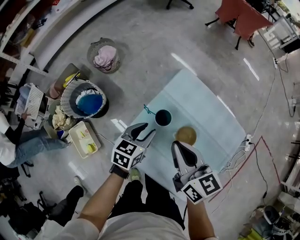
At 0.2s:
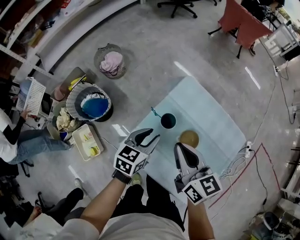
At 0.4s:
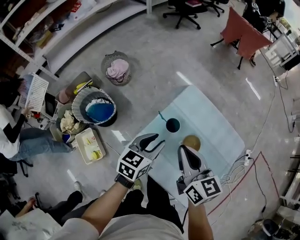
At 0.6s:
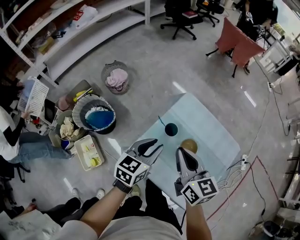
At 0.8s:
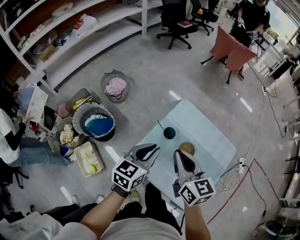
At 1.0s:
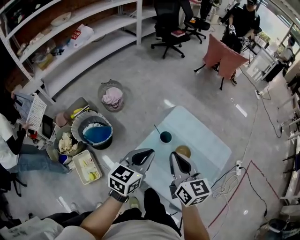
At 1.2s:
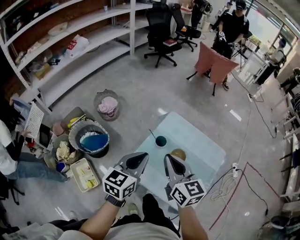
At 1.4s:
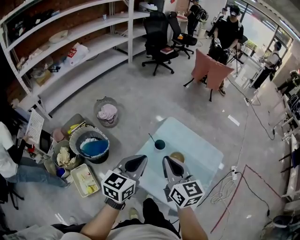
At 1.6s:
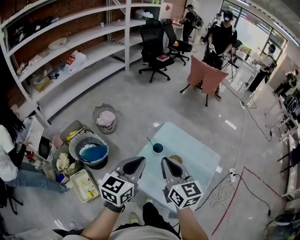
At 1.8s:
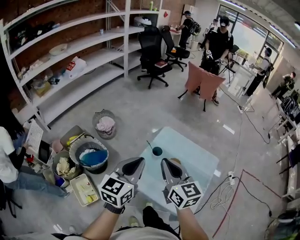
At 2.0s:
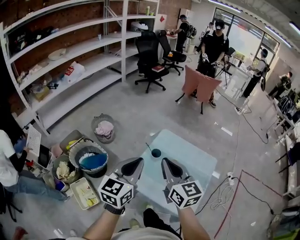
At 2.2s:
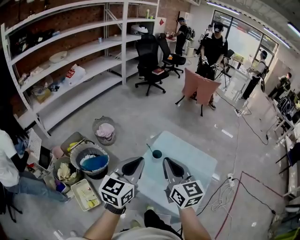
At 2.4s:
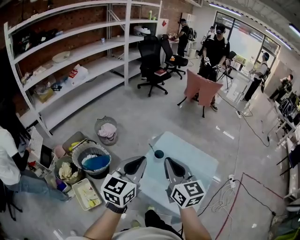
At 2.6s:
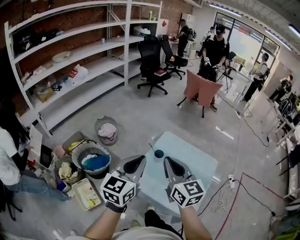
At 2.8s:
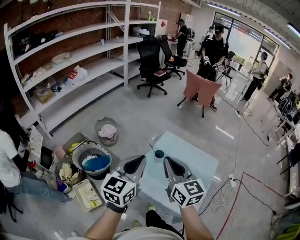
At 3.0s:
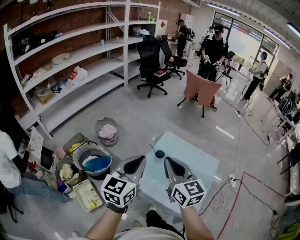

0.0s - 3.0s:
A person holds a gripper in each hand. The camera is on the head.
0.0s - 1.6s: The right gripper moves upward and backward, about 20 cm, and swivels about 20 degrees. Meanwhile the left gripper is displaced upward and backward by about 35 cm, swivels approximately 30 degrees, and closes its fingers.
1.6s - 3.0s: Both grippers travel together upward, roughly 5 cm.

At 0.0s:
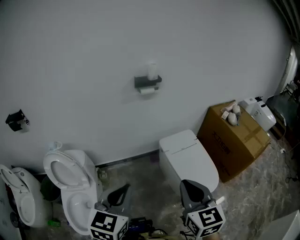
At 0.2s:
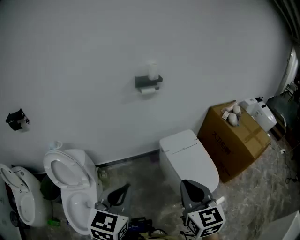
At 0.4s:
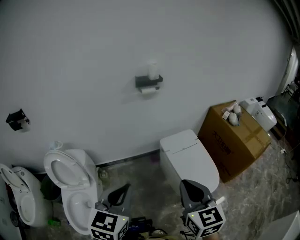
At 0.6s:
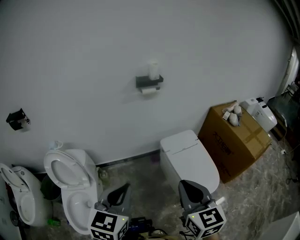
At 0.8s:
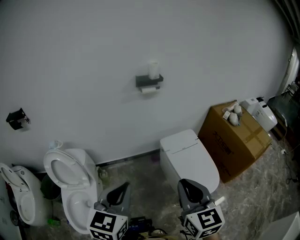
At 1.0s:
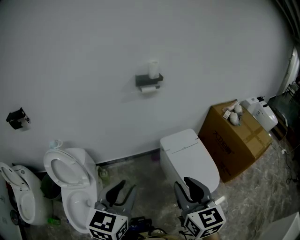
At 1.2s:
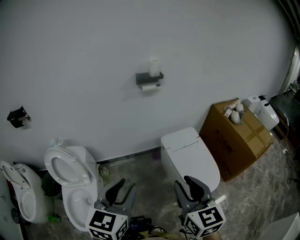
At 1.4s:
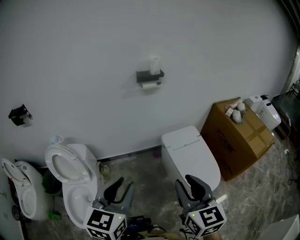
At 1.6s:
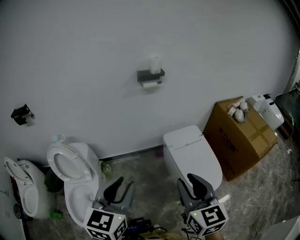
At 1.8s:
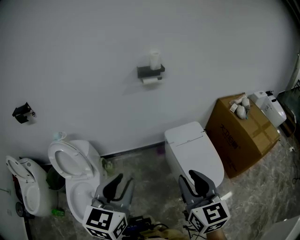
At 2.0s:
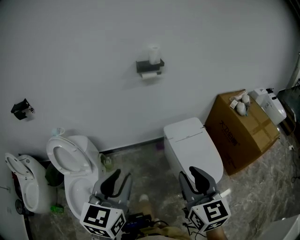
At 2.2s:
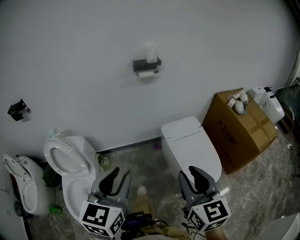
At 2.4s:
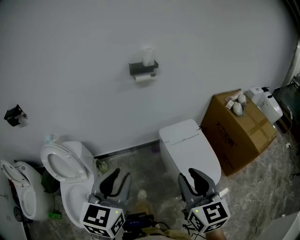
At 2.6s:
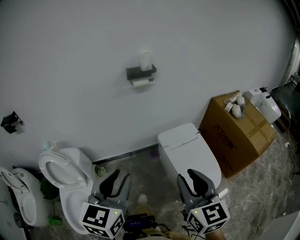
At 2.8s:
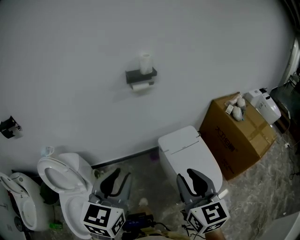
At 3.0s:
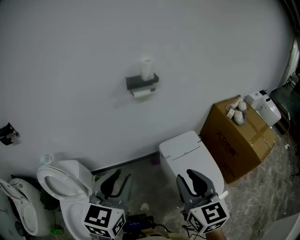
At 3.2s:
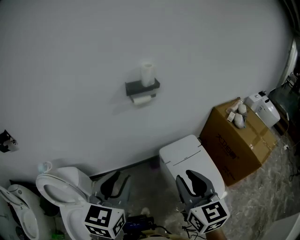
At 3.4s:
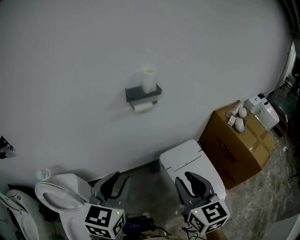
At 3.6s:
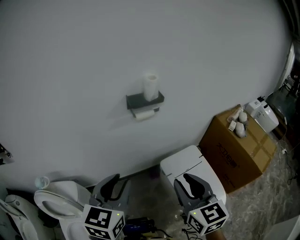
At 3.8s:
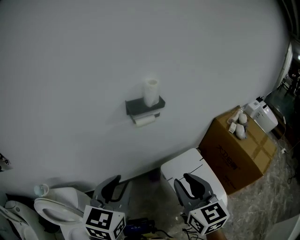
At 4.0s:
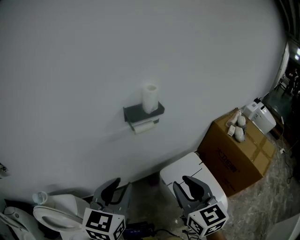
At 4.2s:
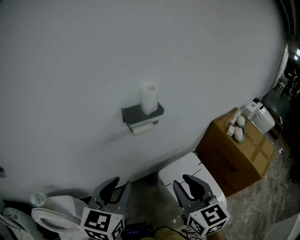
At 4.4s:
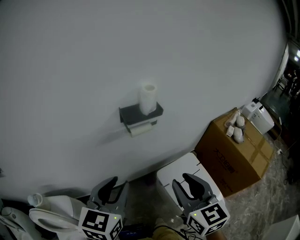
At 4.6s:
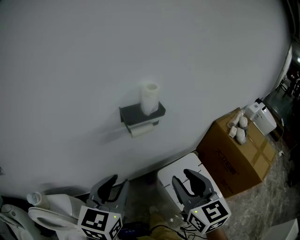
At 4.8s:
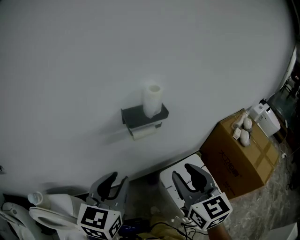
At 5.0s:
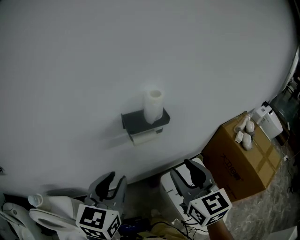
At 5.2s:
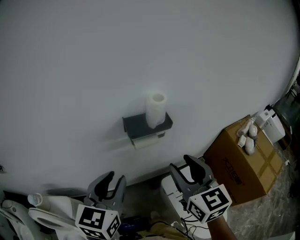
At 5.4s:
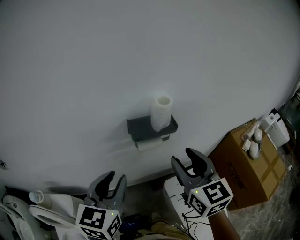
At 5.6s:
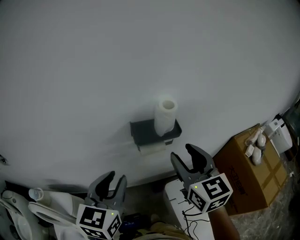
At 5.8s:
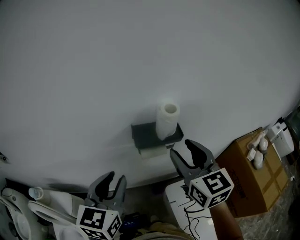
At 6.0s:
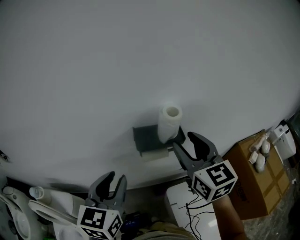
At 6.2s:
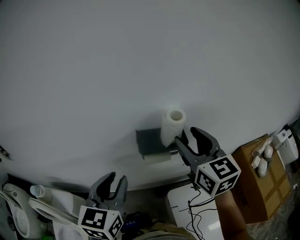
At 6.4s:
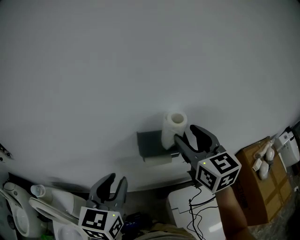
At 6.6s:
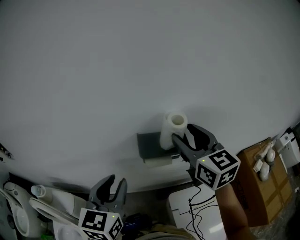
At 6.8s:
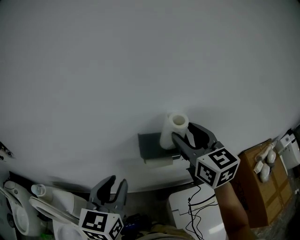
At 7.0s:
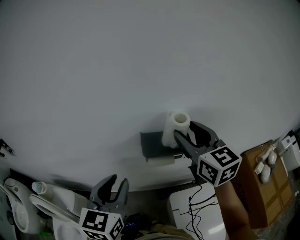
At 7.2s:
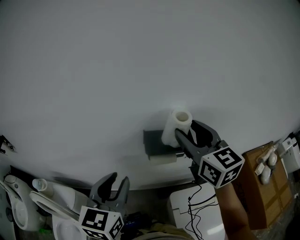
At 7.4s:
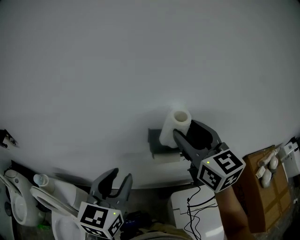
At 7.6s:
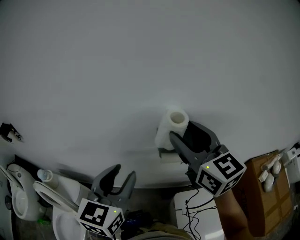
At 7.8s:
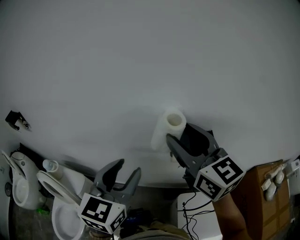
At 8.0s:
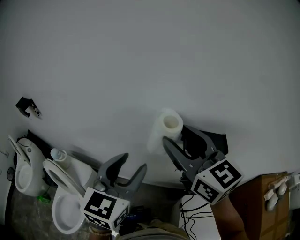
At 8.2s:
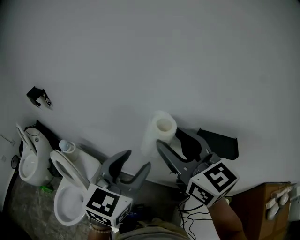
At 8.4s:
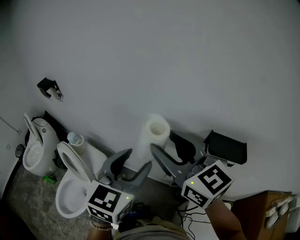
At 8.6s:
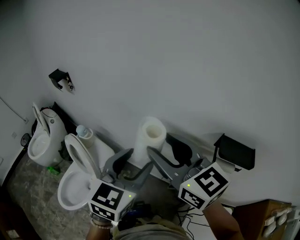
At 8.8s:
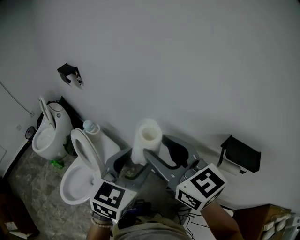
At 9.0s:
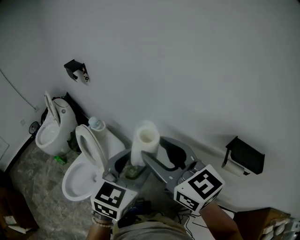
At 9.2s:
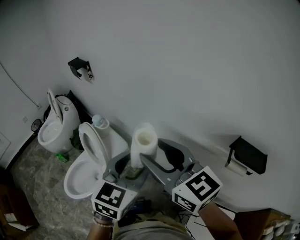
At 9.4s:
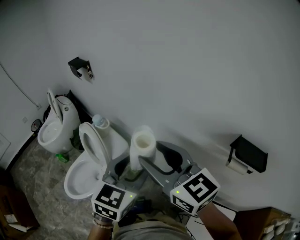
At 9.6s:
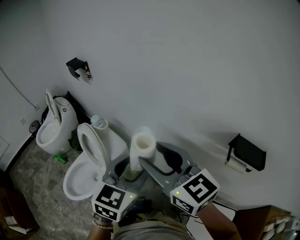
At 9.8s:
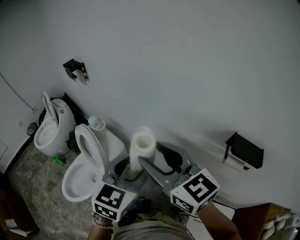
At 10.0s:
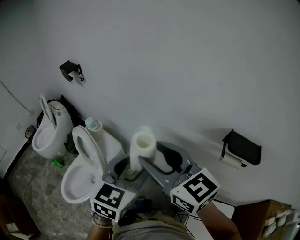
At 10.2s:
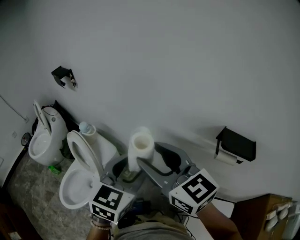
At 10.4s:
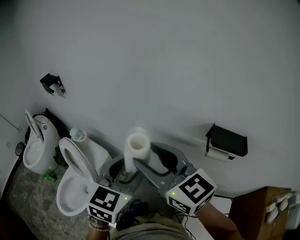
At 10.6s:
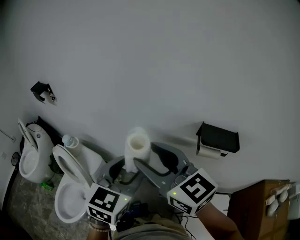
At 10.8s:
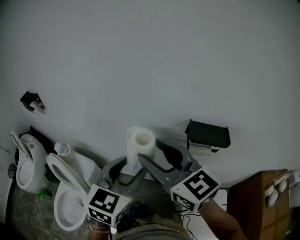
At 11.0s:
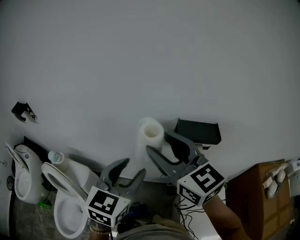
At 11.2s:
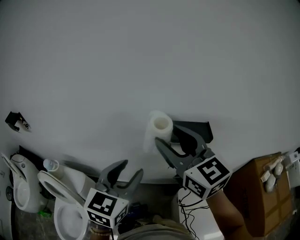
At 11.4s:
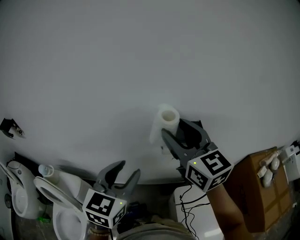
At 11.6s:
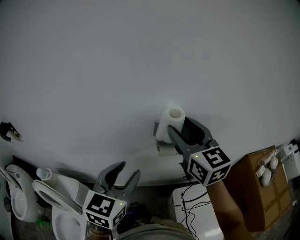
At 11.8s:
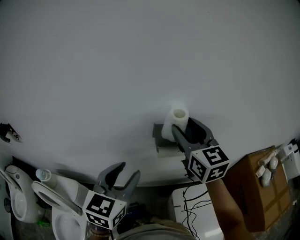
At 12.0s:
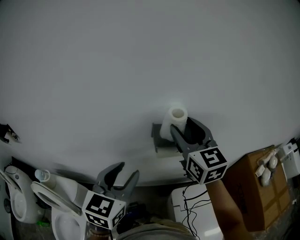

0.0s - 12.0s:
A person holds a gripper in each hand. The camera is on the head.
0.0s - 1.6s: The right gripper opens its fingers, while the left gripper opens its fingers.
1.6s - 3.0s: The grippers both shift forward by roughly 15 cm.
3.0s - 4.4s: Both grippers move forward, roughly 20 cm.
4.4s - 6.0s: The left gripper shifts some 15 cm forward. Meanwhile the right gripper goes approximately 25 cm forward.
6.0s - 7.6s: The right gripper travels to the left and upward by roughly 10 cm.
7.6s - 9.0s: The right gripper changes place by some 35 cm, and swivels some 50 degrees, while the left gripper moves about 20 cm, and changes its angle by some 30 degrees.
9.0s - 10.4s: The grippers make only small movements.
10.4s - 12.0s: The right gripper changes place by roughly 35 cm, and changes its angle by about 50 degrees. Meanwhile the left gripper moves about 15 cm, and rotates approximately 20 degrees.

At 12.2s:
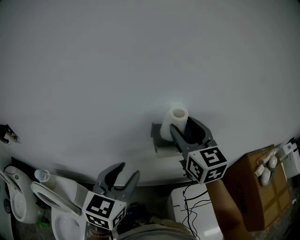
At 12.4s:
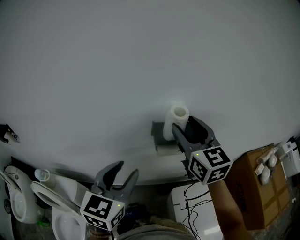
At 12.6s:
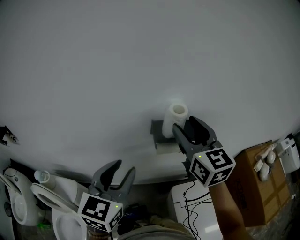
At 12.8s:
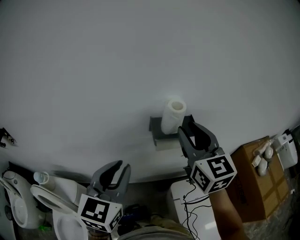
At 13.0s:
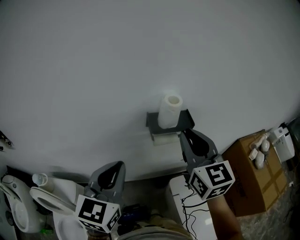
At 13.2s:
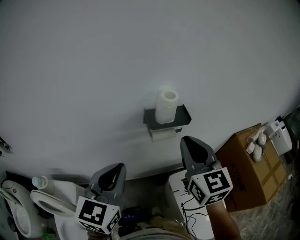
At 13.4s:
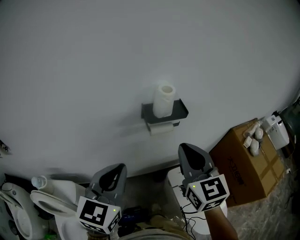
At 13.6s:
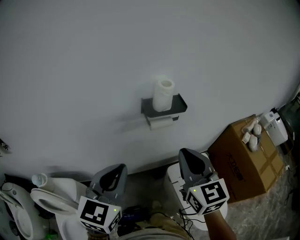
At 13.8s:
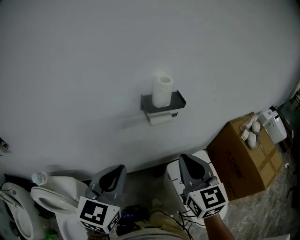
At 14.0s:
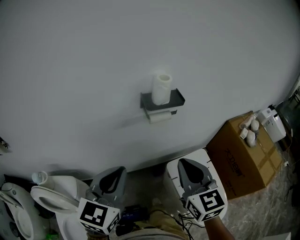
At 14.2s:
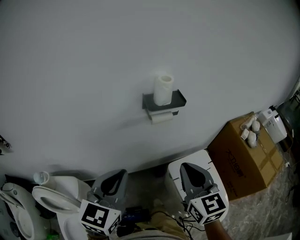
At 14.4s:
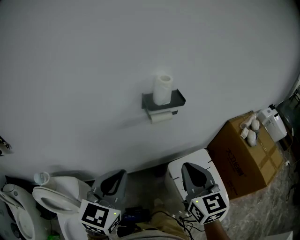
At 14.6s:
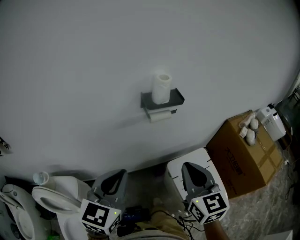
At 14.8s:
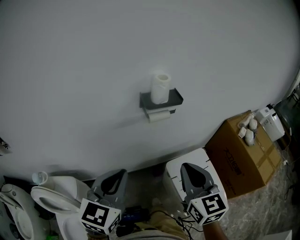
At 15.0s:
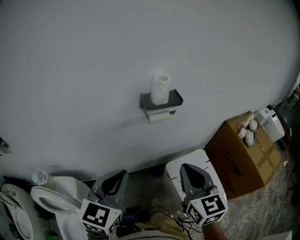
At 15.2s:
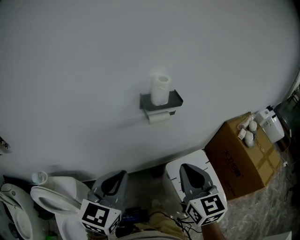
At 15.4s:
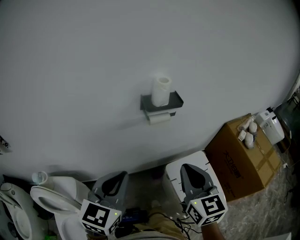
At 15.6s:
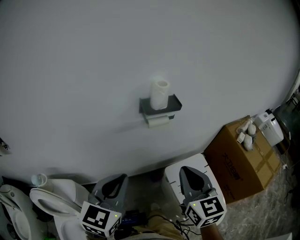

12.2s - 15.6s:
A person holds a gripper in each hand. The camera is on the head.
12.2s - 13.8s: The left gripper travels backward by some 10 cm, and closes; the right gripper shifts about 25 cm backward, and closes.
13.8s - 15.6s: The right gripper ends up some 5 cm from where it was.

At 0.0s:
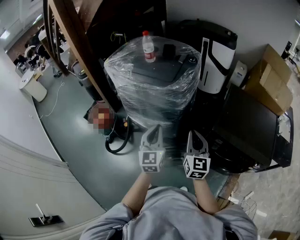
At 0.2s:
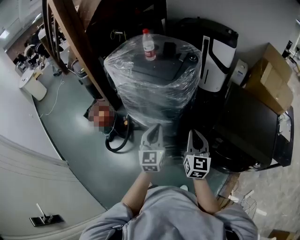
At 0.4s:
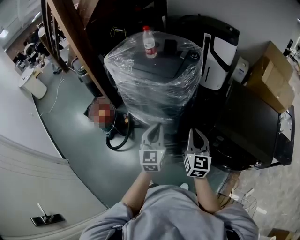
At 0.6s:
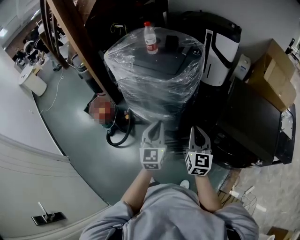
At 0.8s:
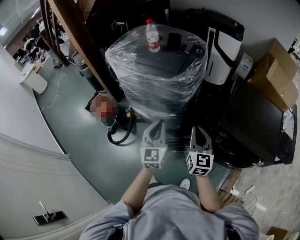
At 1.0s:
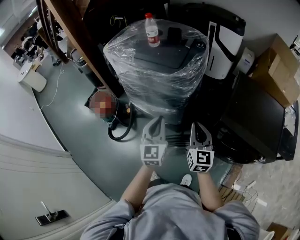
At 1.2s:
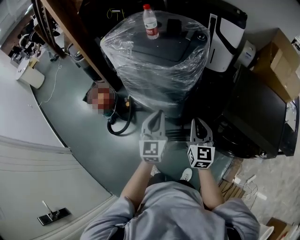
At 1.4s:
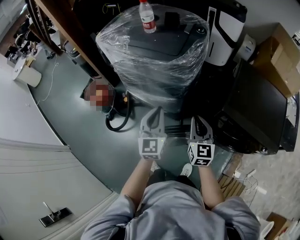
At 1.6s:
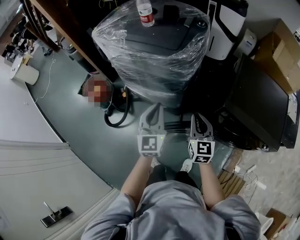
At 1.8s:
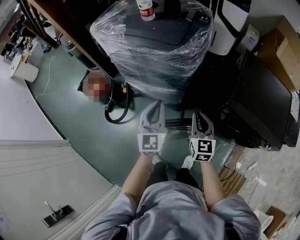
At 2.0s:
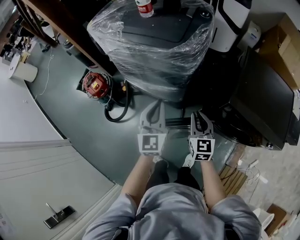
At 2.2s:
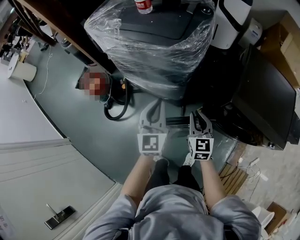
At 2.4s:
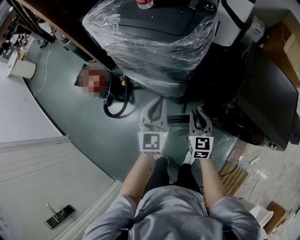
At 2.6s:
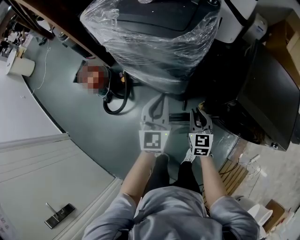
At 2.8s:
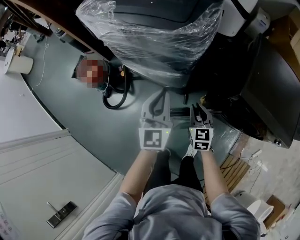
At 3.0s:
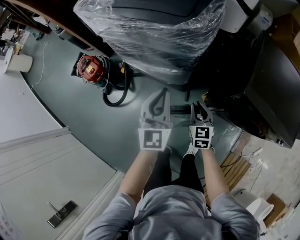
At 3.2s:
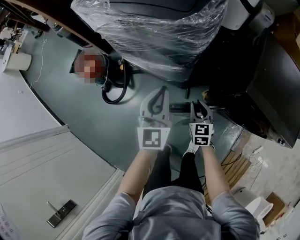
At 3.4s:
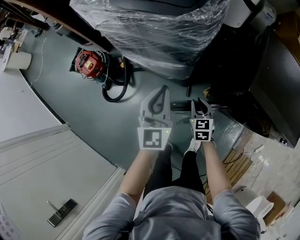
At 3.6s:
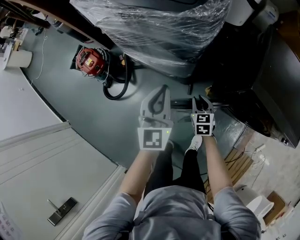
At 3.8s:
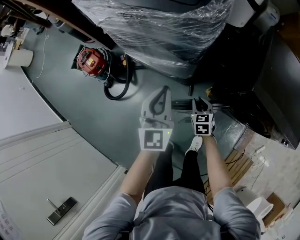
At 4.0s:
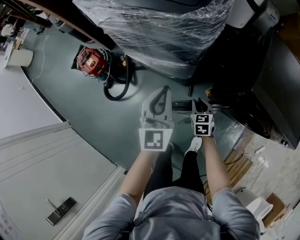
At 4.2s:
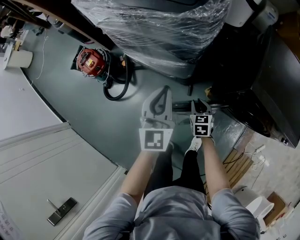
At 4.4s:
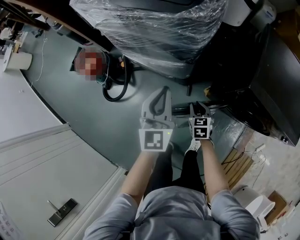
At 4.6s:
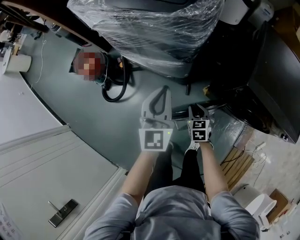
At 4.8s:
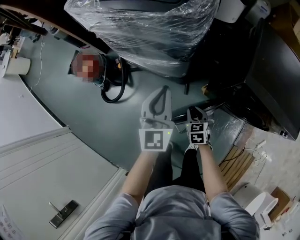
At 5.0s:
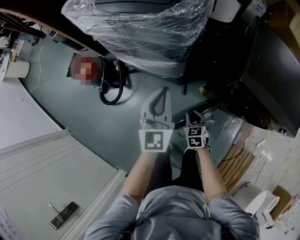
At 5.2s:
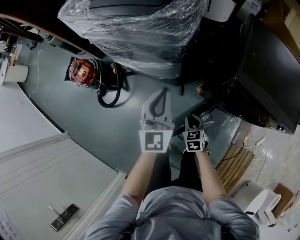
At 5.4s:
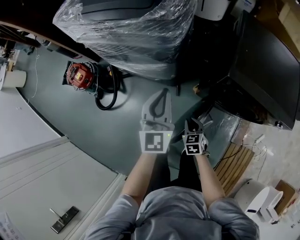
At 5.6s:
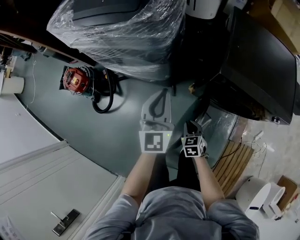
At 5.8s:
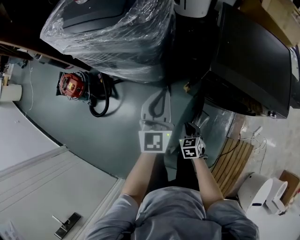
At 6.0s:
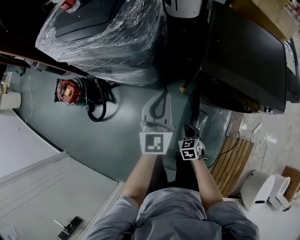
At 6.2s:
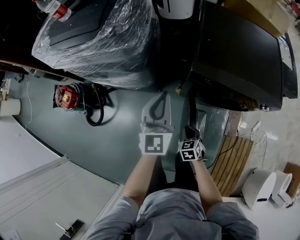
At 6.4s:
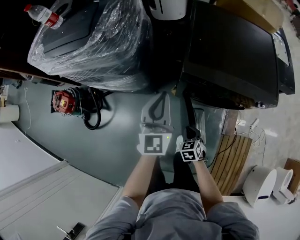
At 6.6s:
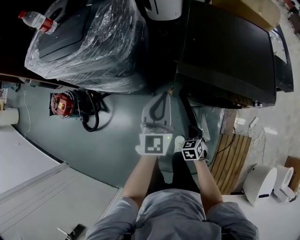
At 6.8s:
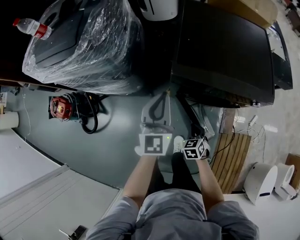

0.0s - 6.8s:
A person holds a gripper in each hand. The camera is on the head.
0.0s - 1.4s: The right gripper shifts roughly 5 cm downward.
1.4s - 2.8s: The left gripper moves downward, approximately 5 cm; the right gripper goes some 20 cm downward.
2.8s - 4.0s: The right gripper goes approximately 15 cm downward.
4.0s - 5.4s: The left gripper goes roughly 10 cm to the right. Meanwhile the right gripper heads backward and to the right, covering about 15 cm.
5.4s - 6.8s: Both grippers travel together to the right, roughly 20 cm.
